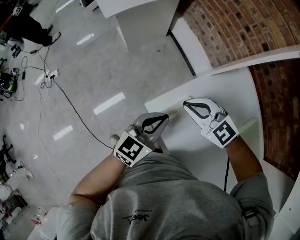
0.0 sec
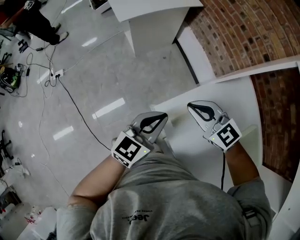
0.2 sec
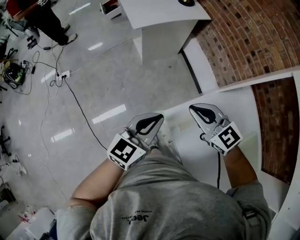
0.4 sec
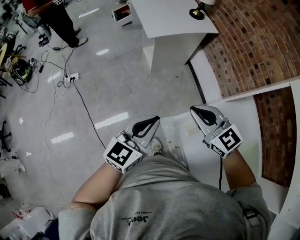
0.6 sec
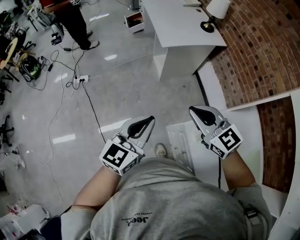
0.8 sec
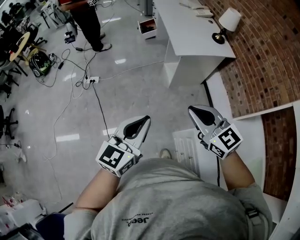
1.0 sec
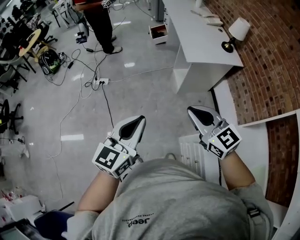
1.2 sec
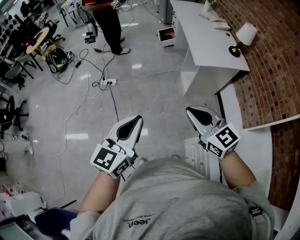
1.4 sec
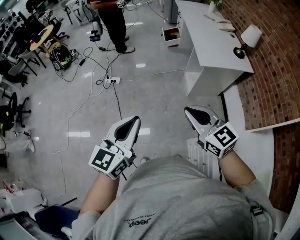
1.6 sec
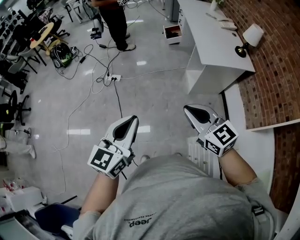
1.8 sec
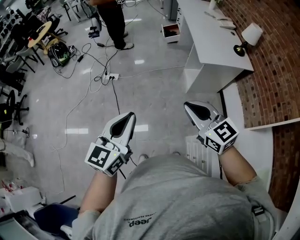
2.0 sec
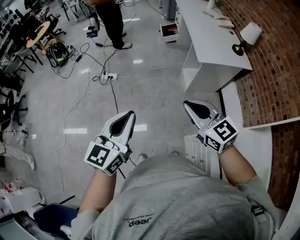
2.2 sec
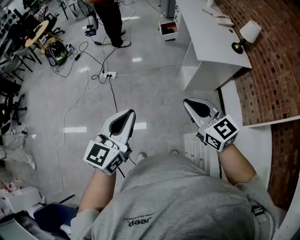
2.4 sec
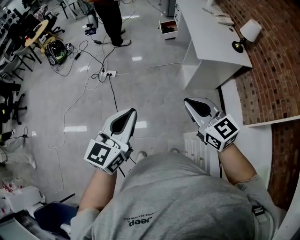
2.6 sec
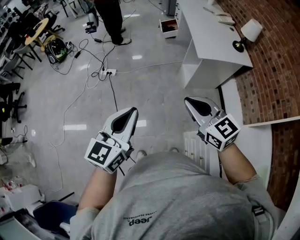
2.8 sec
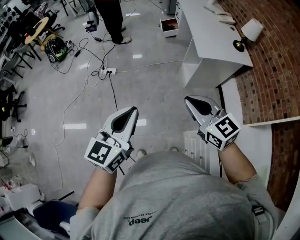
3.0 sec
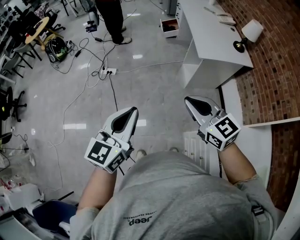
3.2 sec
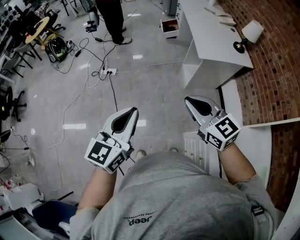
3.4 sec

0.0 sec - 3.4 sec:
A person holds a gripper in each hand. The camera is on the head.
0.0 sec - 1.6 sec: The right gripper shifts by some 40 cm, while the left gripper changes place by approximately 50 cm, and turns by approximately 50 degrees.
1.6 sec - 3.4 sec: The grippers make only small movements.

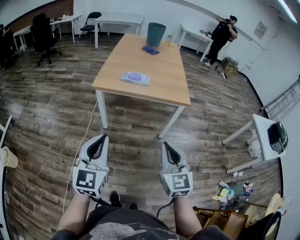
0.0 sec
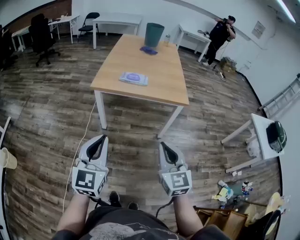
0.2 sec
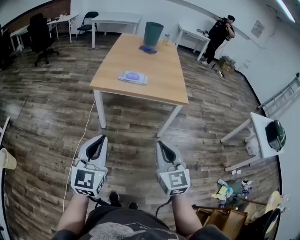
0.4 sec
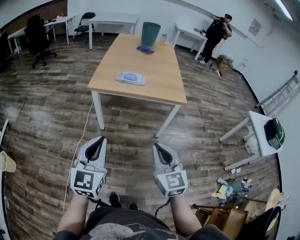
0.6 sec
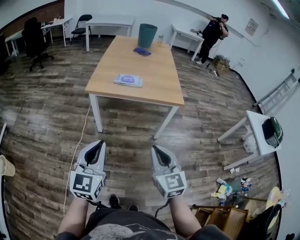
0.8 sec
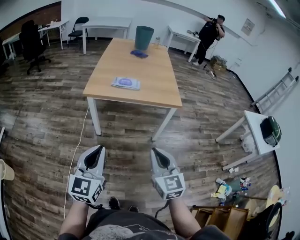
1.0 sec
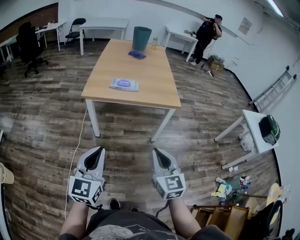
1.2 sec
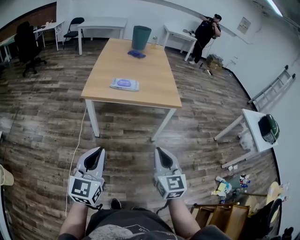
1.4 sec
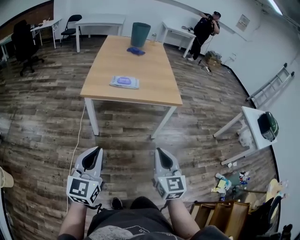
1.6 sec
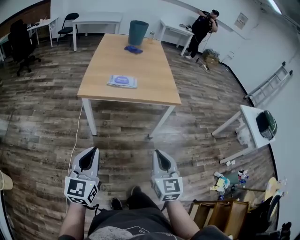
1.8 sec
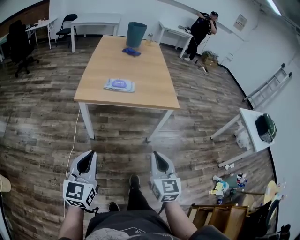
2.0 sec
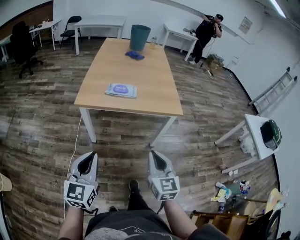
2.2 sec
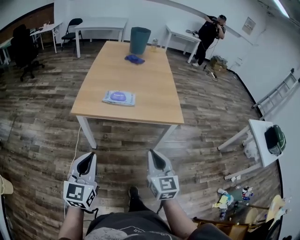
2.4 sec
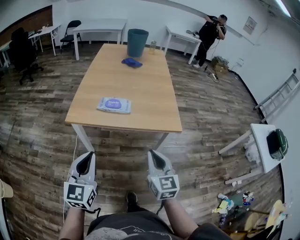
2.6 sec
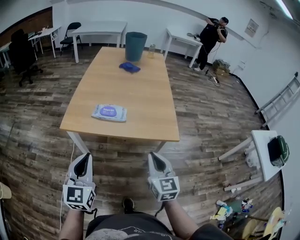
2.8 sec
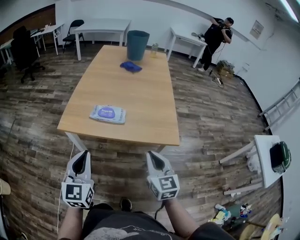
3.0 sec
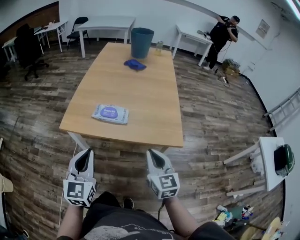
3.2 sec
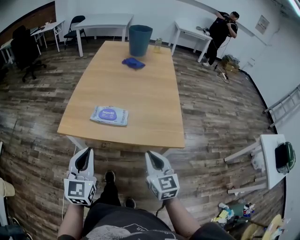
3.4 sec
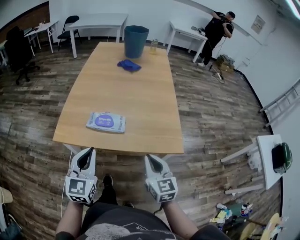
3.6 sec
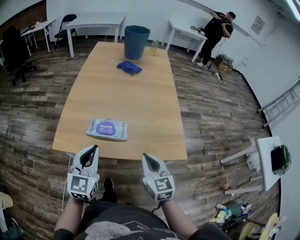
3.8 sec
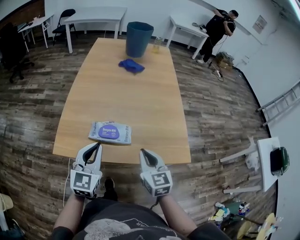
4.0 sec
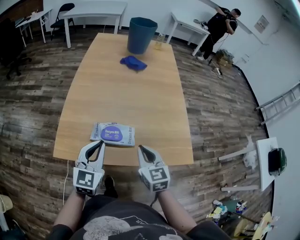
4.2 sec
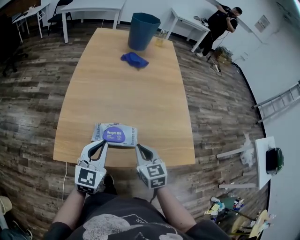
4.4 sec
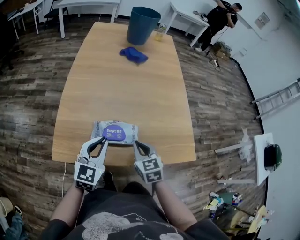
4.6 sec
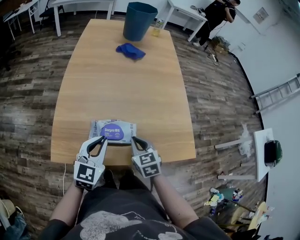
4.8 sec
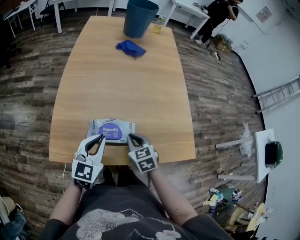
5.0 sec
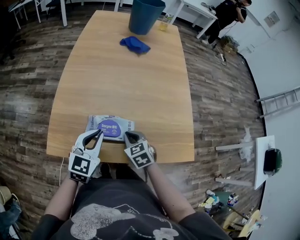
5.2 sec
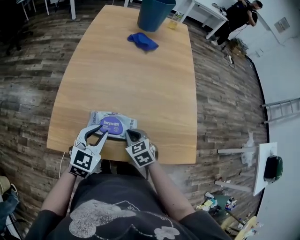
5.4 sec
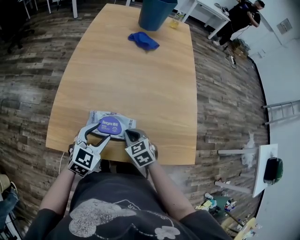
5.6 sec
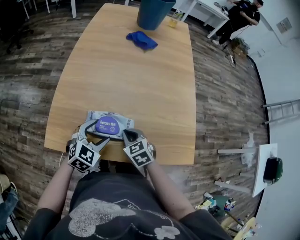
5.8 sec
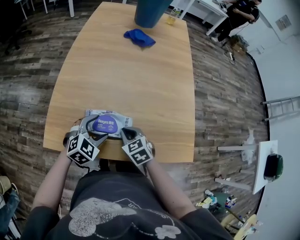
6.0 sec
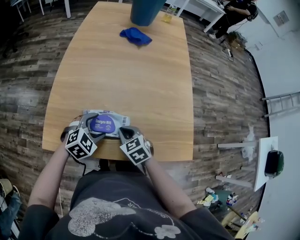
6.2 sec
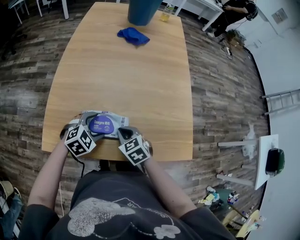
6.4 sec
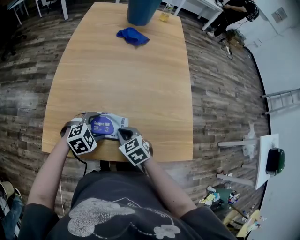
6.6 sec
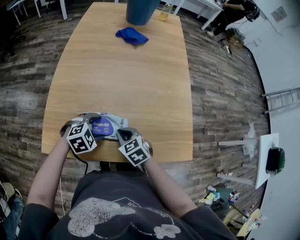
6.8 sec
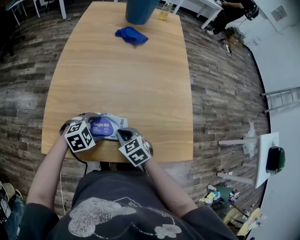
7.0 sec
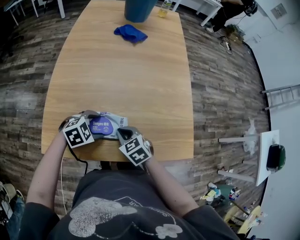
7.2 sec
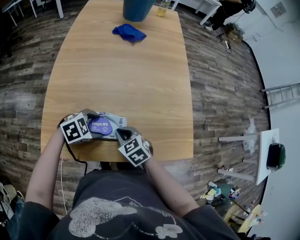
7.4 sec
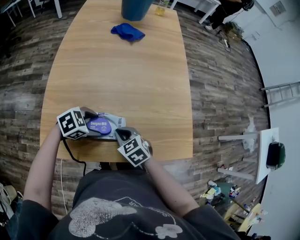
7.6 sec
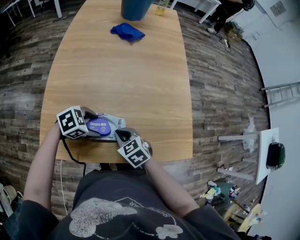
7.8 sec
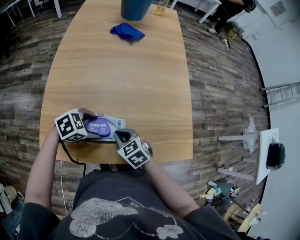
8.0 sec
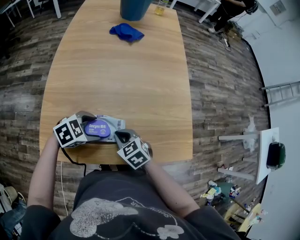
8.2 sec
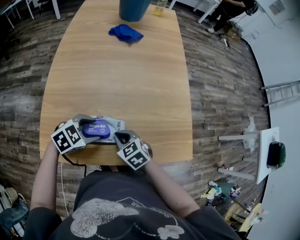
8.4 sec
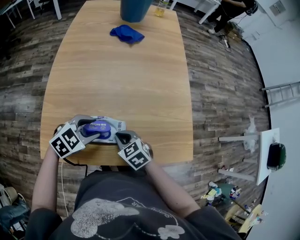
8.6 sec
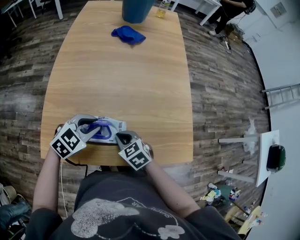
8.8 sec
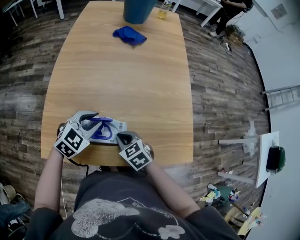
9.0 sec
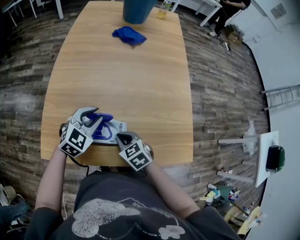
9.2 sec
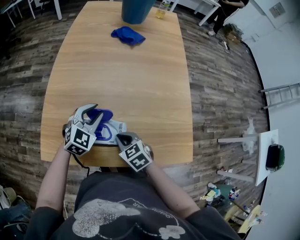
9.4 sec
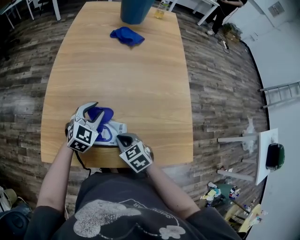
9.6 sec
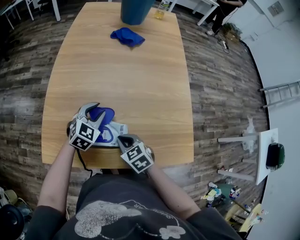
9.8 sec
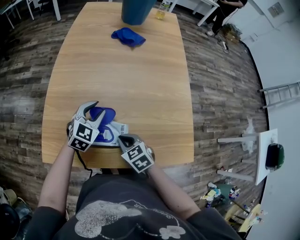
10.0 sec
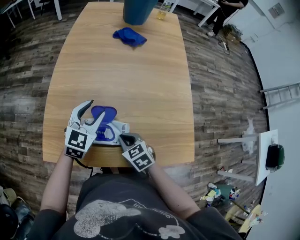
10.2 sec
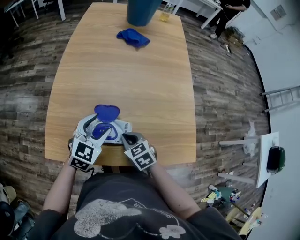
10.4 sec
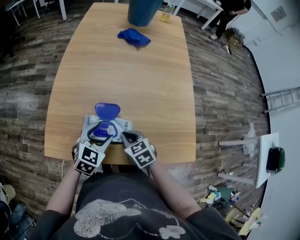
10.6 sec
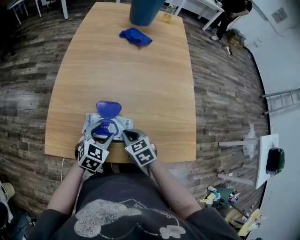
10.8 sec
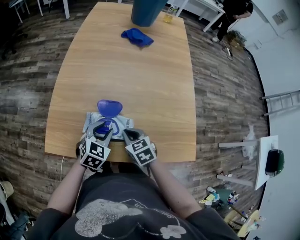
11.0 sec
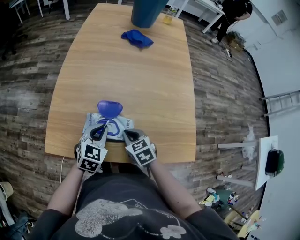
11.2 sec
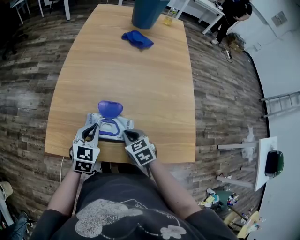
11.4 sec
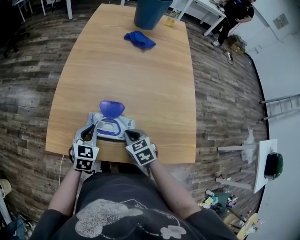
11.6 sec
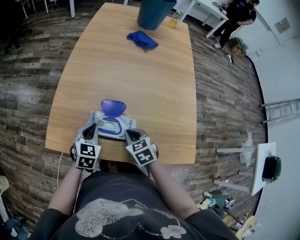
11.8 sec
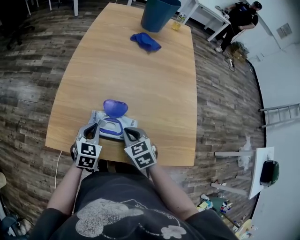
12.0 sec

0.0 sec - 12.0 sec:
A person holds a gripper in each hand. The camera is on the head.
0.0 sec - 1.6 sec: The left gripper changes place by some 5 cm.
1.6 sec - 3.0 sec: The two grippers go approximately 25 cm forward.
3.0 sec - 4.4 sec: The left gripper is displaced forward by roughly 25 cm, and rotates roughly 20 degrees. Meanwhile the right gripper travels forward, to the left and downward by roughly 25 cm.
4.4 sec - 6.0 sec: The two grippers go approximately 10 cm downward. The right gripper rotates about 30 degrees. Meanwhile the left gripper turns by some 40 degrees, and opens up.
6.0 sec - 7.6 sec: The left gripper changes its angle by roughly 40 degrees.
7.6 sec - 9.0 sec: The left gripper shifts about 5 cm upward, changes its angle by approximately 40 degrees, and closes up.
9.0 sec - 10.4 sec: The left gripper opens up.
10.4 sec - 12.0 sec: The left gripper shifts approximately 10 cm downward and to the left, swivels roughly 20 degrees, and closes up.

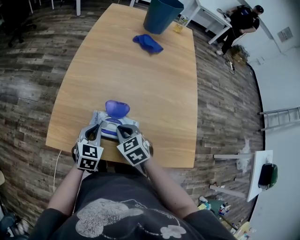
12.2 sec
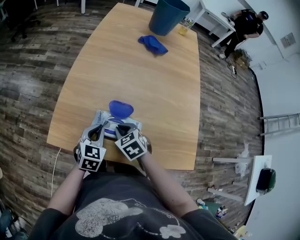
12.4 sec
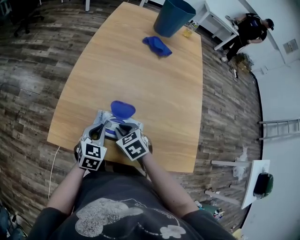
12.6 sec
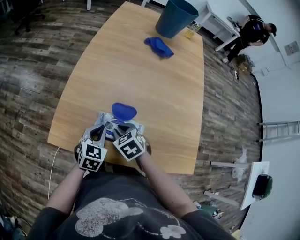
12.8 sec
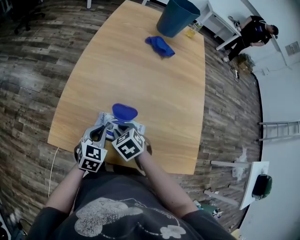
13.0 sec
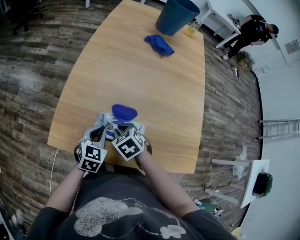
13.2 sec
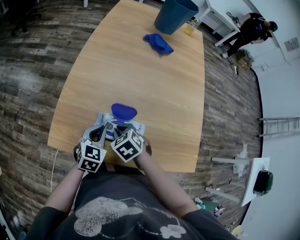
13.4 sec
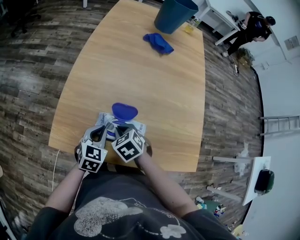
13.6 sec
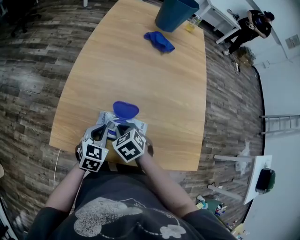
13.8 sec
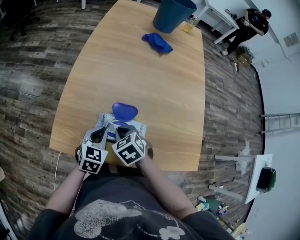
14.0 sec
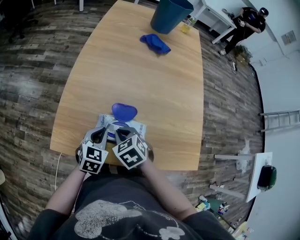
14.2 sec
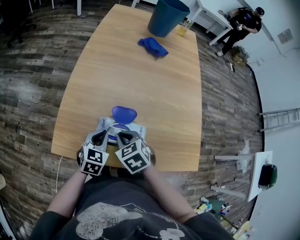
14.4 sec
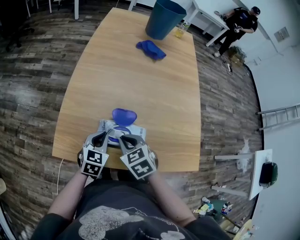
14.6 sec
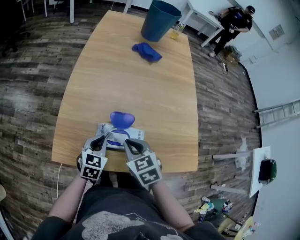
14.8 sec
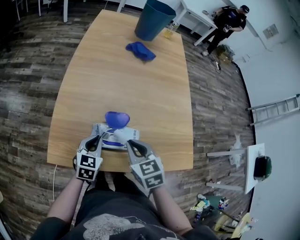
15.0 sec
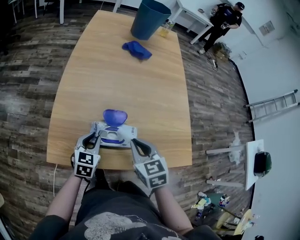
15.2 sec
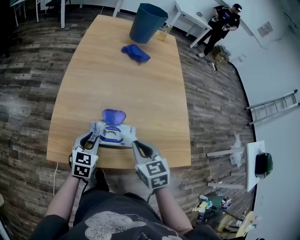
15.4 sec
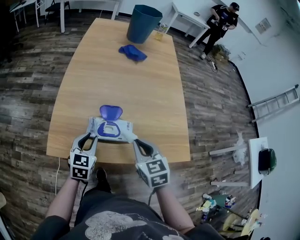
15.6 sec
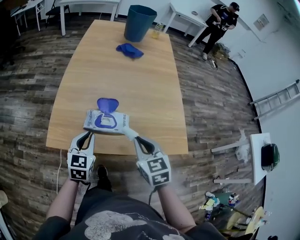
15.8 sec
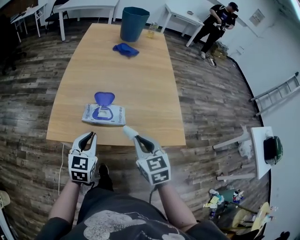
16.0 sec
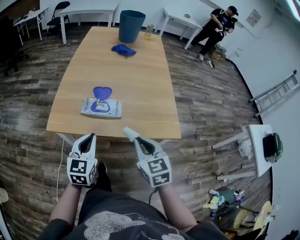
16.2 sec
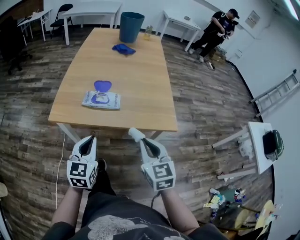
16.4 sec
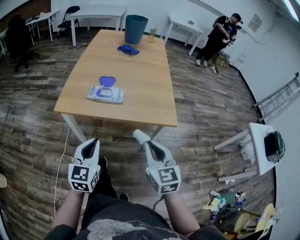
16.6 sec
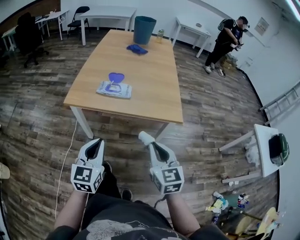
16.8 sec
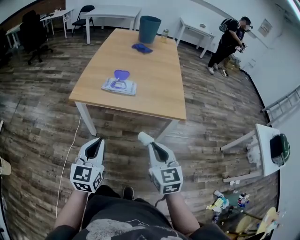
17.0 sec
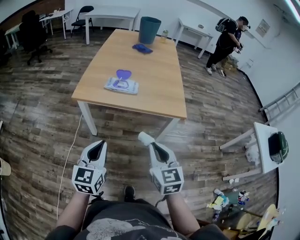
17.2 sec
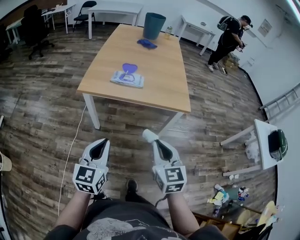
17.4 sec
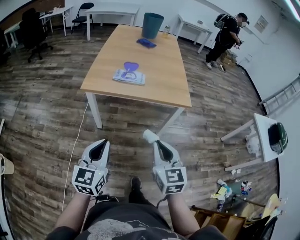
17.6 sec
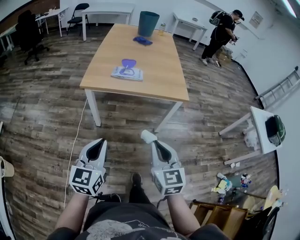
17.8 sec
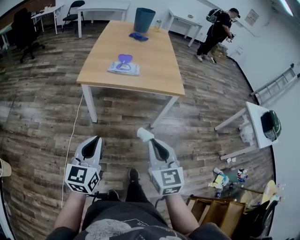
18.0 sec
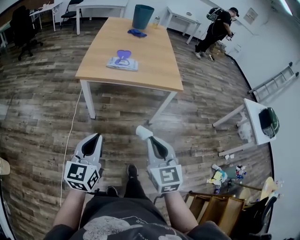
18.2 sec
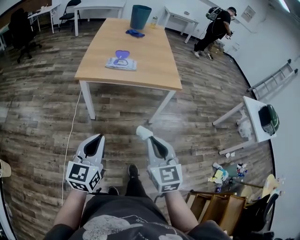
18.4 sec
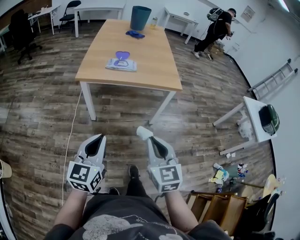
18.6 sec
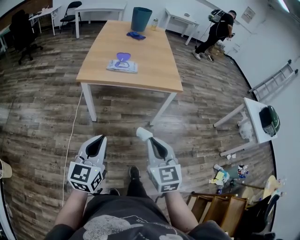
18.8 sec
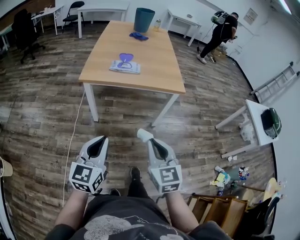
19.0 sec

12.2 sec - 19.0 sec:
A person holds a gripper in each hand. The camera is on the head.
12.2 sec - 13.6 sec: The grippers move only a little.
13.6 sec - 15.0 sec: The right gripper goes about 10 cm upward and to the right, and rotates approximately 30 degrees.
15.0 sec - 16.2 sec: The left gripper travels backward and upward by some 20 cm; the right gripper heads backward and to the right, covering some 20 cm.
16.2 sec - 17.6 sec: Both grippers travel together backward, some 30 cm.
17.6 sec - 19.0 sec: The grippers both shift backward by about 5 cm.

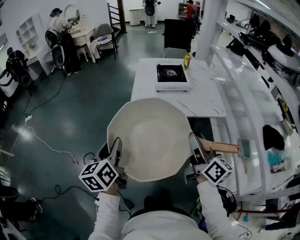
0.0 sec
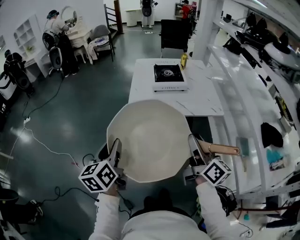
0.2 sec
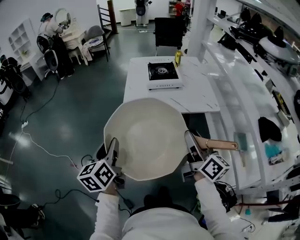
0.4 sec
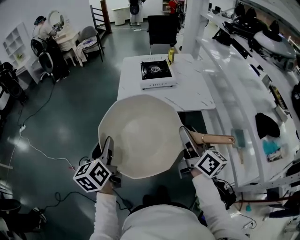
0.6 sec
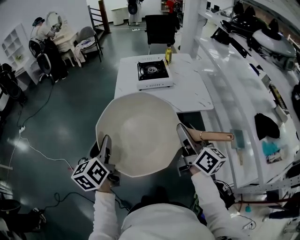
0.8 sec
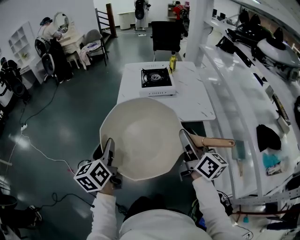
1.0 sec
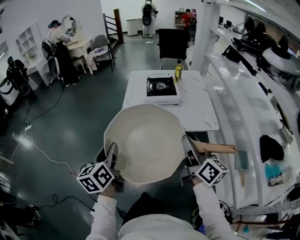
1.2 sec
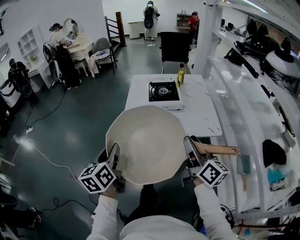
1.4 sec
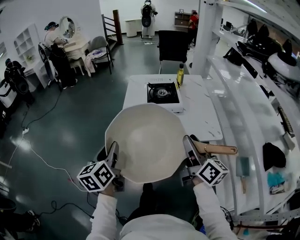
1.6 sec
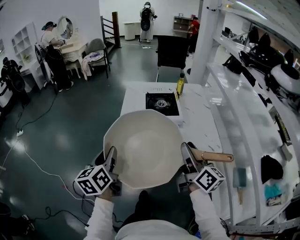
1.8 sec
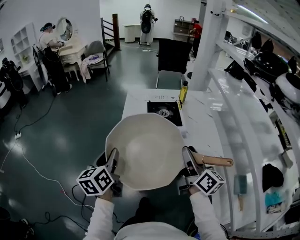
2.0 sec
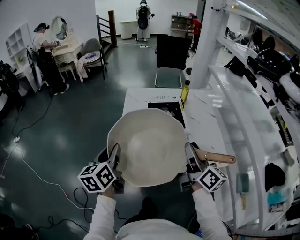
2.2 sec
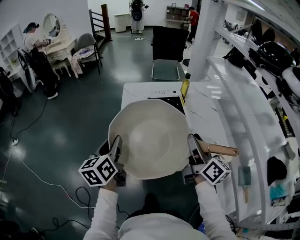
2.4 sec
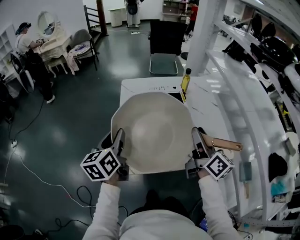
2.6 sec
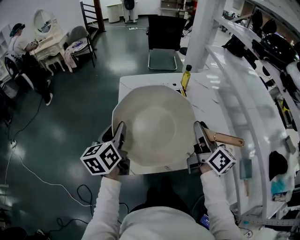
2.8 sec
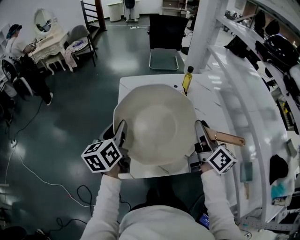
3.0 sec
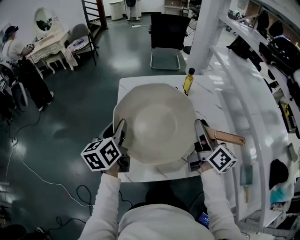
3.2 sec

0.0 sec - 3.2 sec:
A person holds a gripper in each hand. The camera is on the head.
0.0 sec - 1.6 sec: The two grippers go roughly 15 cm forward and to the right.
1.6 sec - 3.2 sec: Both grippers move forward, roughly 35 cm.
